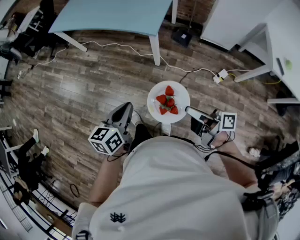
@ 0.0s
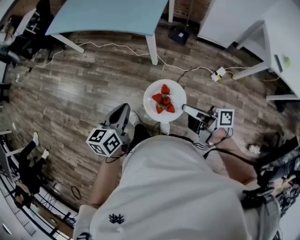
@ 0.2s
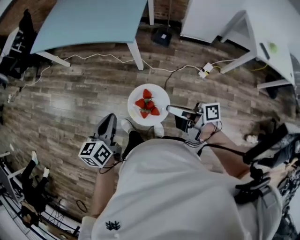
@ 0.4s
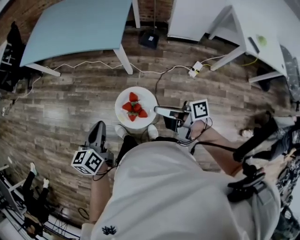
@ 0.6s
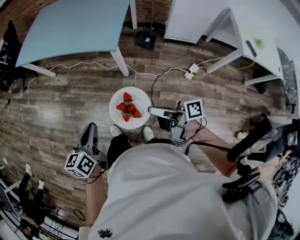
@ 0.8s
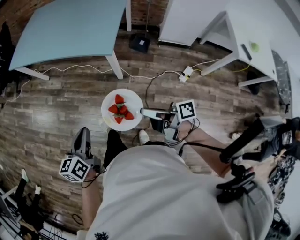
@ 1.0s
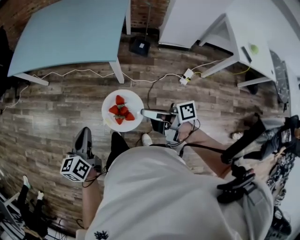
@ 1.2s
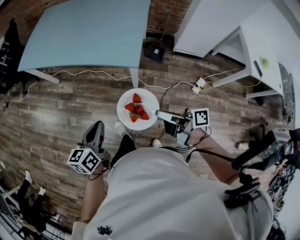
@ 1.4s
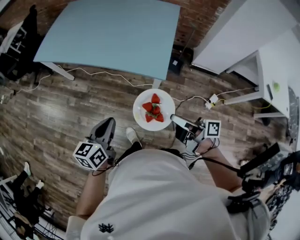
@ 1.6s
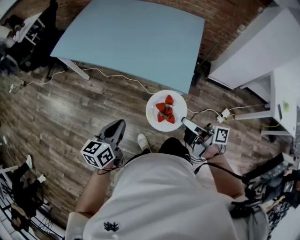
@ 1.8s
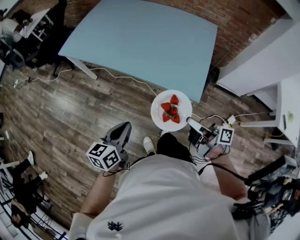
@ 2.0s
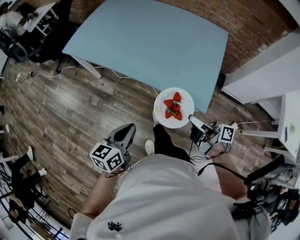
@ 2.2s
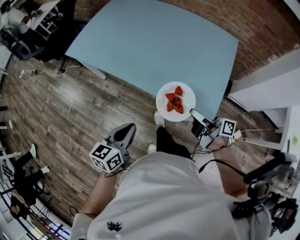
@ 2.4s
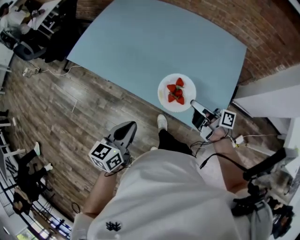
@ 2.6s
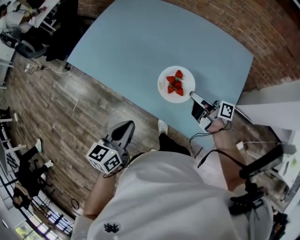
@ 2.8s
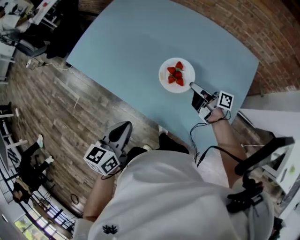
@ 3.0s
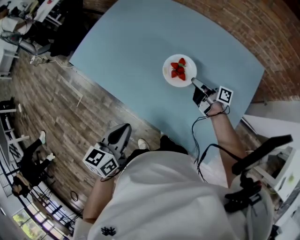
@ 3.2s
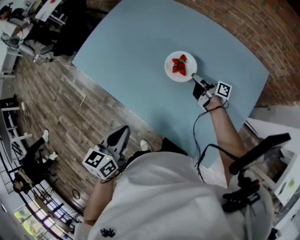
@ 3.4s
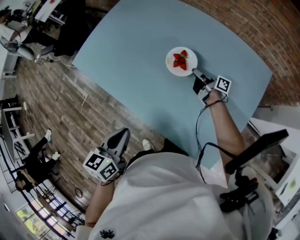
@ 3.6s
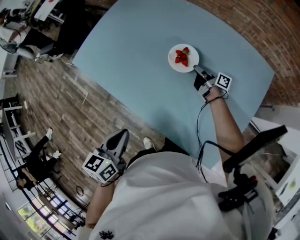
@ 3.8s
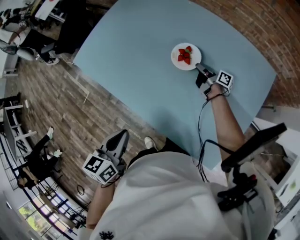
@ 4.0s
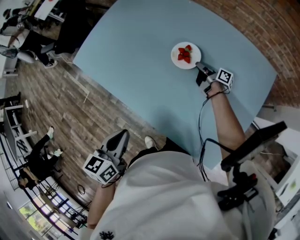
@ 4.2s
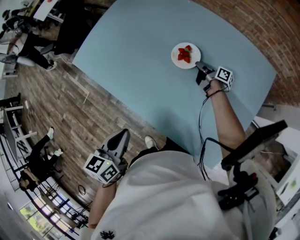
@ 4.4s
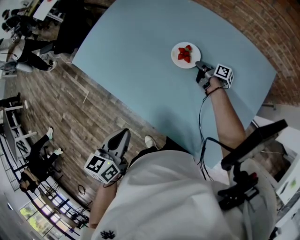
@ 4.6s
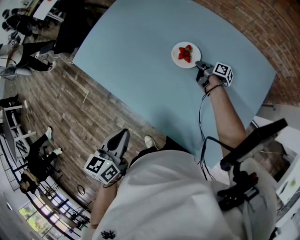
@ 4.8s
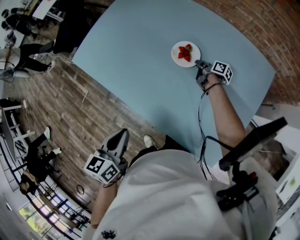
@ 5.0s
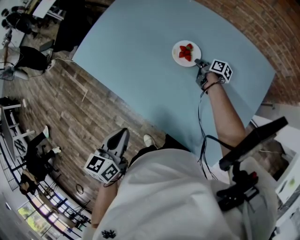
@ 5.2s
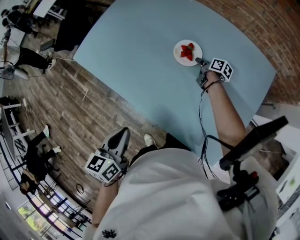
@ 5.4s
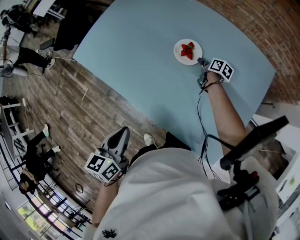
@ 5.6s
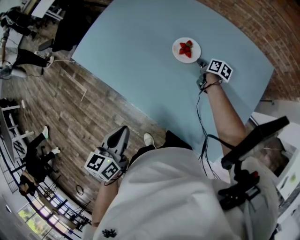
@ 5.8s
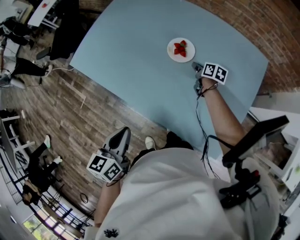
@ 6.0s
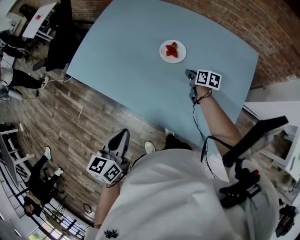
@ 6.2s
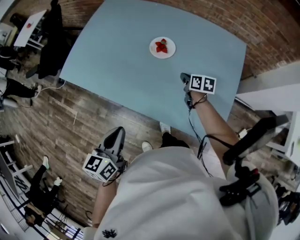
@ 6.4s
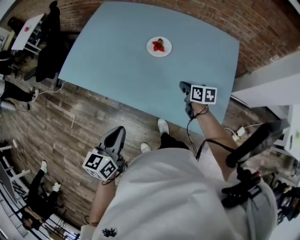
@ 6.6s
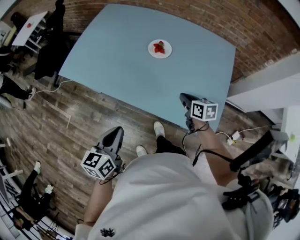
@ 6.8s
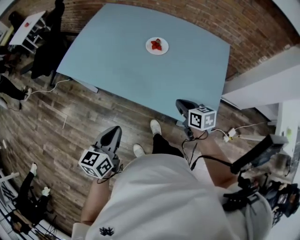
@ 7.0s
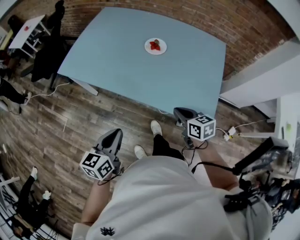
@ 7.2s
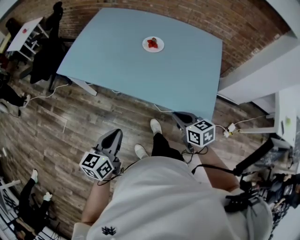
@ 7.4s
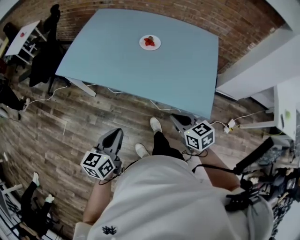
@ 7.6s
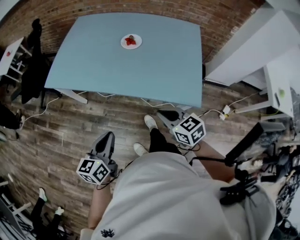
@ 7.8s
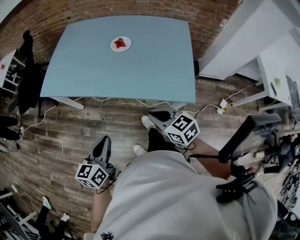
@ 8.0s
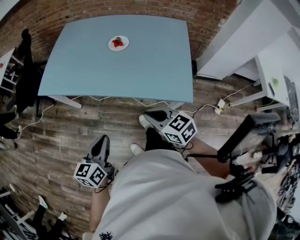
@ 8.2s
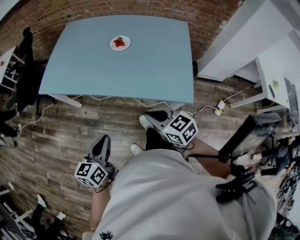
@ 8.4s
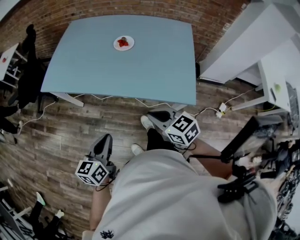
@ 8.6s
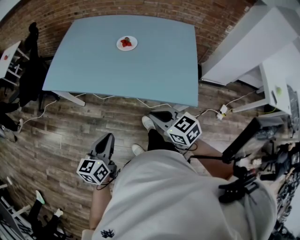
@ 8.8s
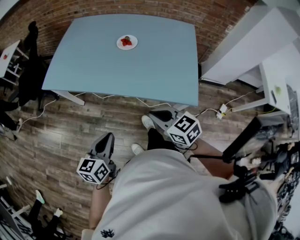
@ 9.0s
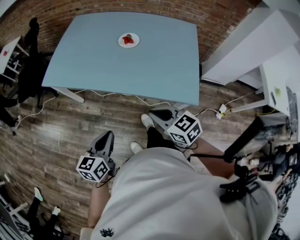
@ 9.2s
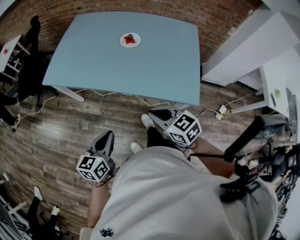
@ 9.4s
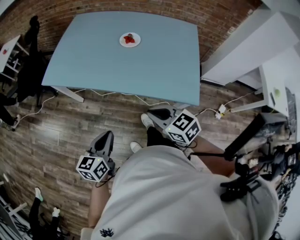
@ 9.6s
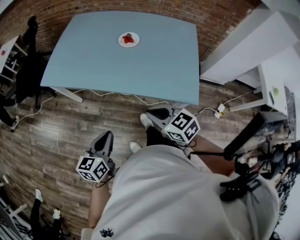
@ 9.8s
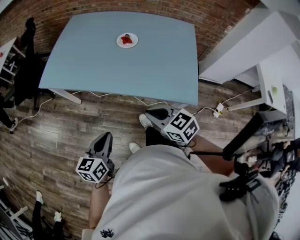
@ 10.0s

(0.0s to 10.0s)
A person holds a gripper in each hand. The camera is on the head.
0.0s - 1.4s: The two grippers go approximately 20 cm forward.
1.4s - 2.8s: The pair of grippers is taken forward, approximately 50 cm.
2.8s - 4.2s: The left gripper travels forward by roughly 10 cm. Meanwhile the right gripper moves forward and downward, some 30 cm.
4.2s - 5.8s: The right gripper turns by roughly 30 degrees, and opens up.
5.8s - 7.2s: The right gripper moves backward and upward, some 50 cm, rotates approximately 30 degrees, and closes its fingers. Meanwhile the left gripper is displaced backward by roughly 15 cm.
7.2s - 8.6s: The left gripper travels backward by about 5 cm, while the right gripper is displaced backward, upward and to the left by roughly 15 cm.
8.6s - 10.0s: There are only small adjustments of the grippers.

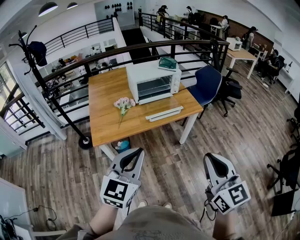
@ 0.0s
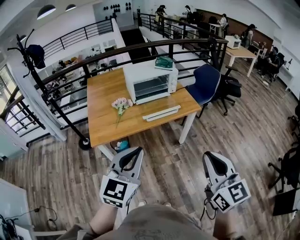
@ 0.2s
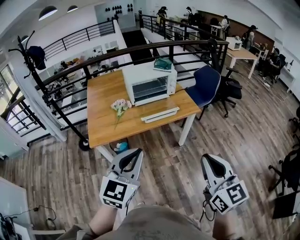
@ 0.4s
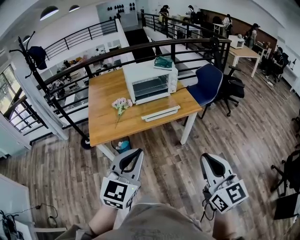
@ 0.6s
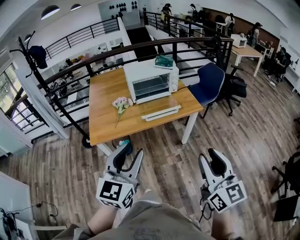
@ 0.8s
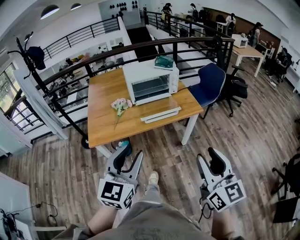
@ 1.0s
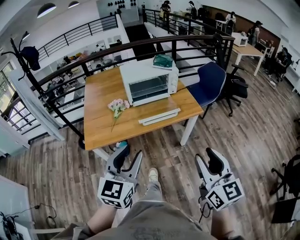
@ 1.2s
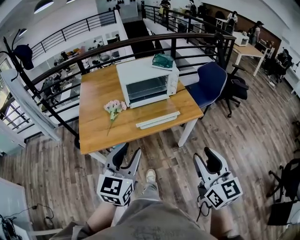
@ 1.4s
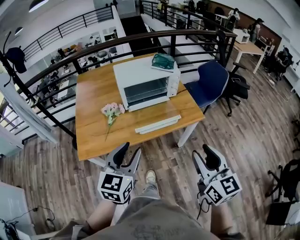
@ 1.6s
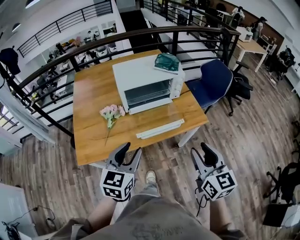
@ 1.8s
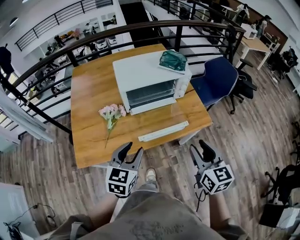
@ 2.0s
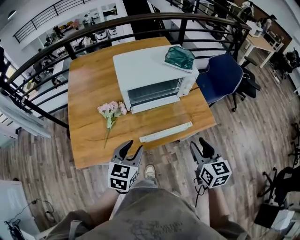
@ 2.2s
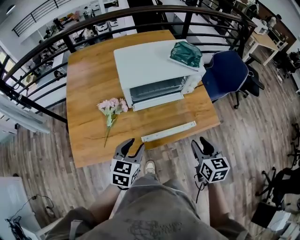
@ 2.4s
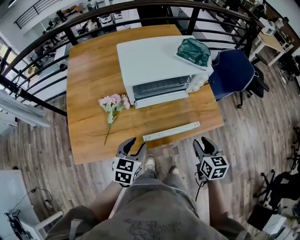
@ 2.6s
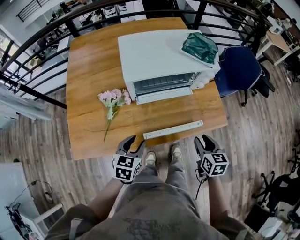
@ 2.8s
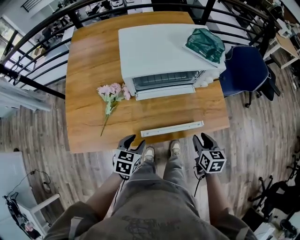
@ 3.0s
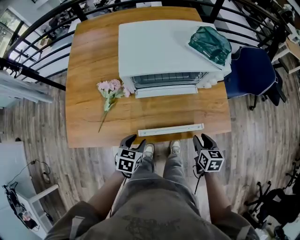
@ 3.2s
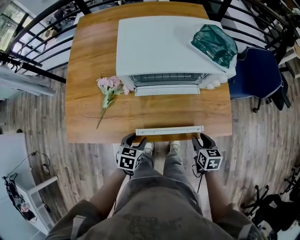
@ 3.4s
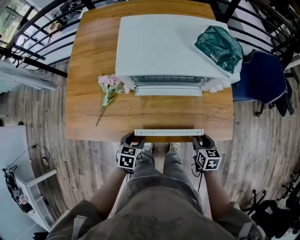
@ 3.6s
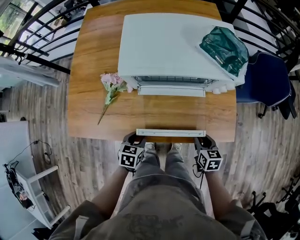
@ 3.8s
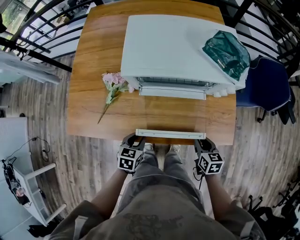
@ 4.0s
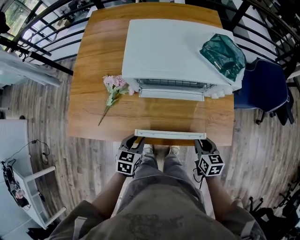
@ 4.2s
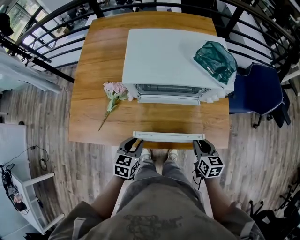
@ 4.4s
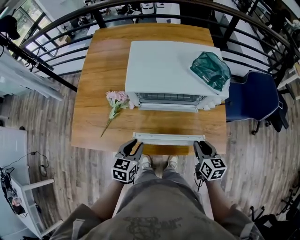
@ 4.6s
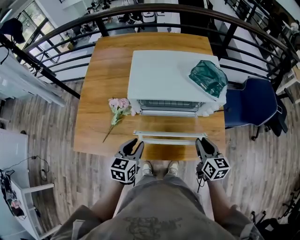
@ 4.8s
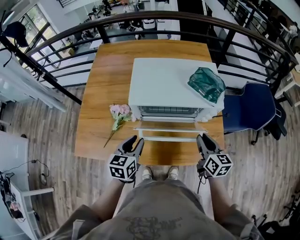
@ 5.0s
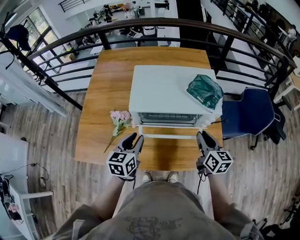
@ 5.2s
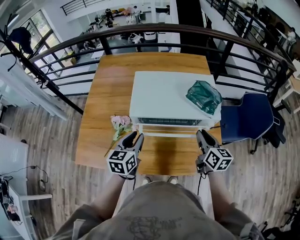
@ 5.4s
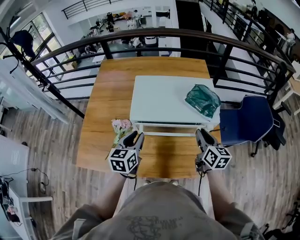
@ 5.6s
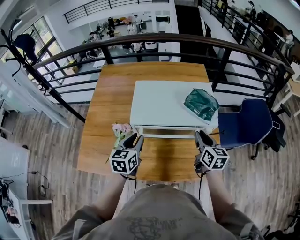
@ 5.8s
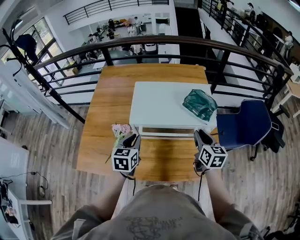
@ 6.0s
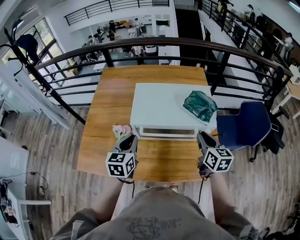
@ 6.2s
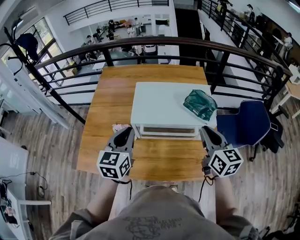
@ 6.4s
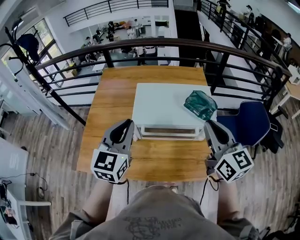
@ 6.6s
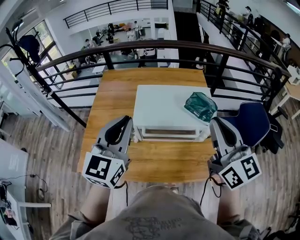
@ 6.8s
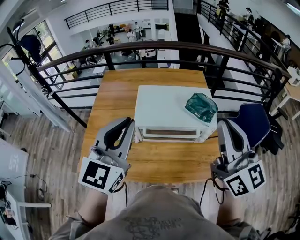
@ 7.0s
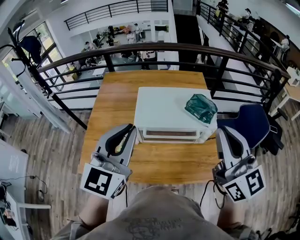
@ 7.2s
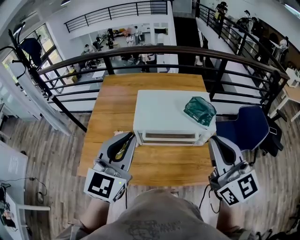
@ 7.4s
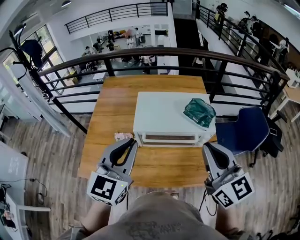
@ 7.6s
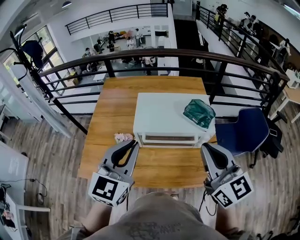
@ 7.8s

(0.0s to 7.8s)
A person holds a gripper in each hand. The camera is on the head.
0.0s - 1.6s: Both grippers travel together forward, roughly 20 cm. The right gripper opens up. Meanwhile the left gripper opens its fingers.
1.6s - 3.2s: Both grippers travel together downward and forward, some 40 cm. The right gripper points its fingers roughly 40 degrees further downward. The left gripper points its fingers roughly 40 degrees further downward.
3.2s - 4.6s: The right gripper moves forward and upward, roughly 10 cm, while the left gripper goes about 10 cm upward.
4.6s - 6.2s: The grippers both shift upward and forward by some 20 cm.
6.2s - 7.8s: The right gripper is displaced upward and backward by some 25 cm, and turns by approximately 30 degrees. Meanwhile the left gripper goes some 20 cm upward, and swivels approximately 30 degrees.

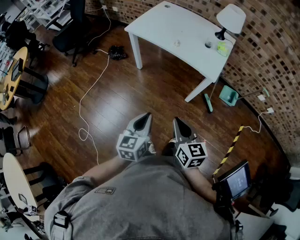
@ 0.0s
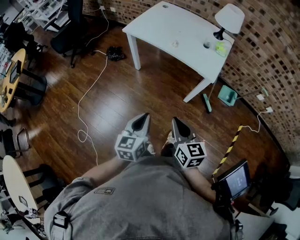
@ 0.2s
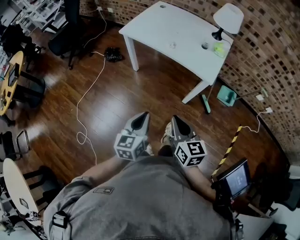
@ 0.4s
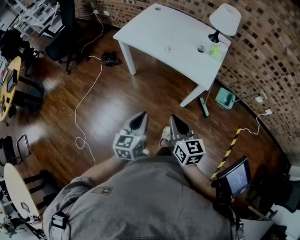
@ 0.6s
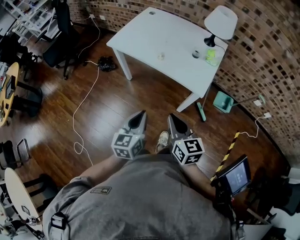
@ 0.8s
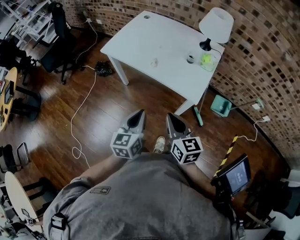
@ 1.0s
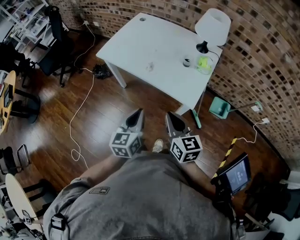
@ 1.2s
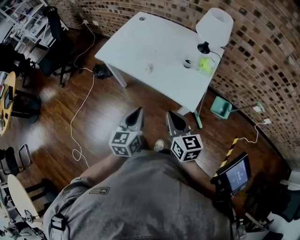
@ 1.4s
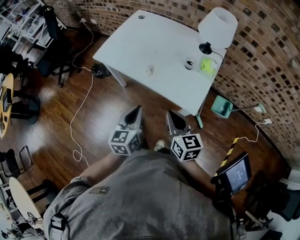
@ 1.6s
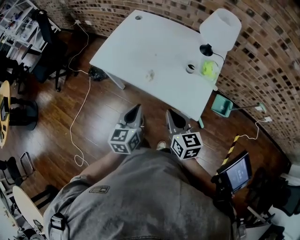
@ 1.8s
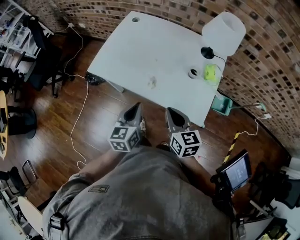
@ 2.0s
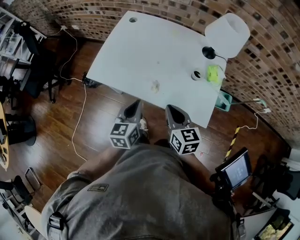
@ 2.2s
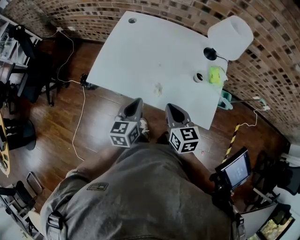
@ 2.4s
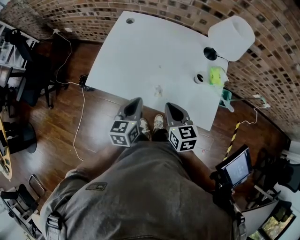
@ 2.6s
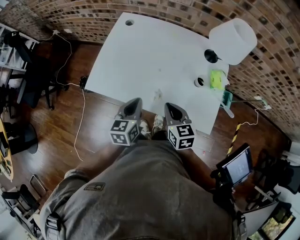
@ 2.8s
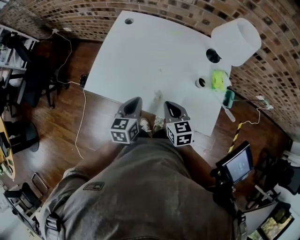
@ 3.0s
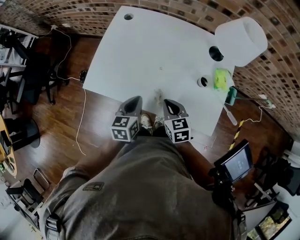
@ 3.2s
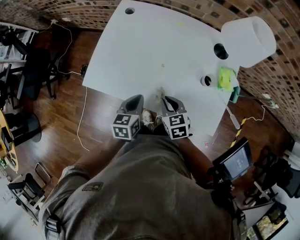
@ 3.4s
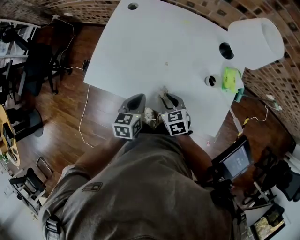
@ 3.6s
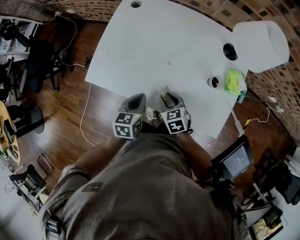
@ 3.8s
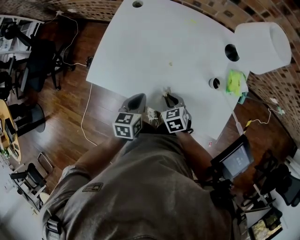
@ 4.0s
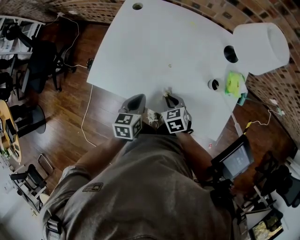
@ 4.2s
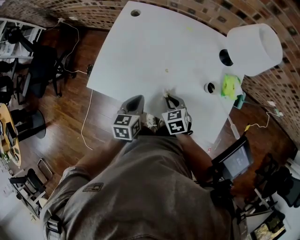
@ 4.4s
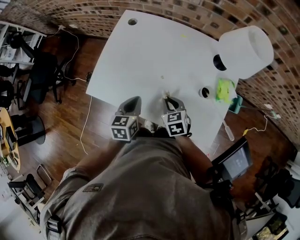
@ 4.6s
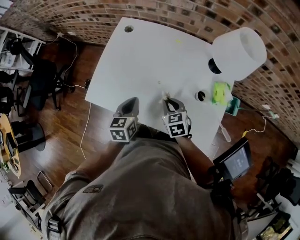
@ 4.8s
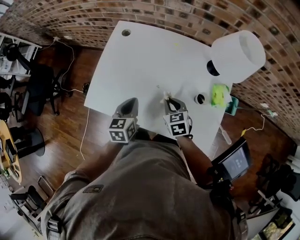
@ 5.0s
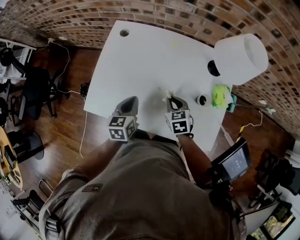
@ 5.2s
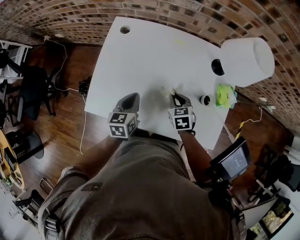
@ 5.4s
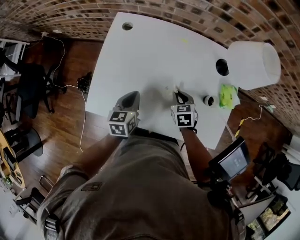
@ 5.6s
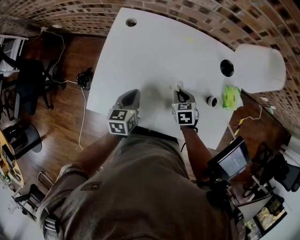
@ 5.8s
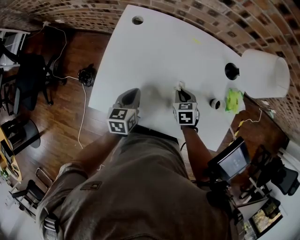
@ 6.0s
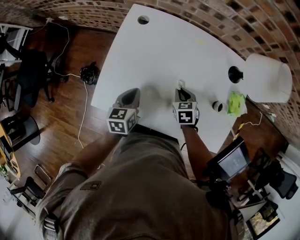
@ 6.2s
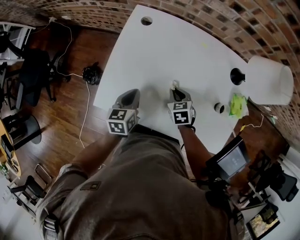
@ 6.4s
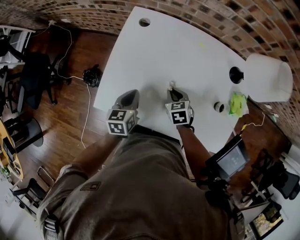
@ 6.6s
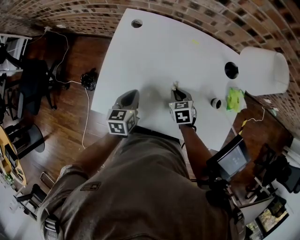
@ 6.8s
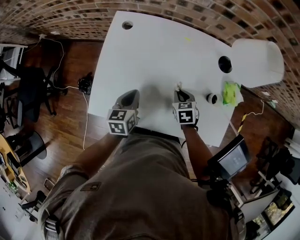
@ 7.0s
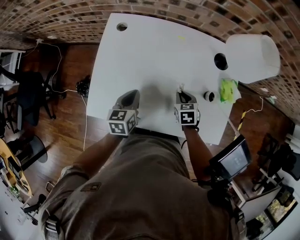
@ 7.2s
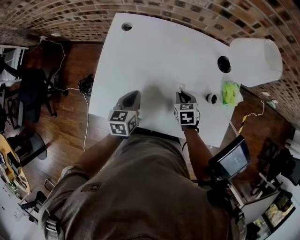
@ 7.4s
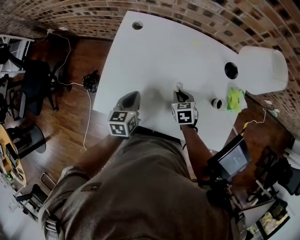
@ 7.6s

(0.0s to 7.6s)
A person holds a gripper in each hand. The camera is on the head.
0.0s - 1.6s: Both grippers travel together forward and to the right, approximately 30 cm.
1.6s - 3.0s: The right gripper shifts about 25 cm forward and downward. Meanwhile the left gripper travels forward by roughly 25 cm.
3.0s - 4.6s: The right gripper travels downward and forward by some 10 cm, and opens, then closes once more; the left gripper ends up approximately 5 cm from where it was.
4.6s - 6.0s: The left gripper goes roughly 15 cm forward and to the left, while the right gripper travels forward and downward by some 10 cm.
6.0s - 7.6s: The right gripper goes left and right, some 10 cm each way, reversing 2 times.
